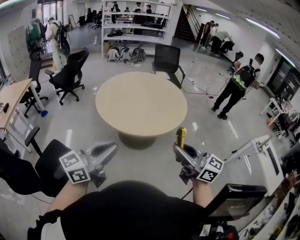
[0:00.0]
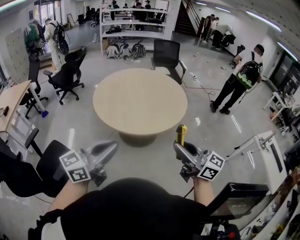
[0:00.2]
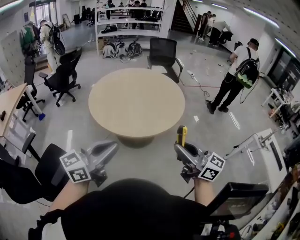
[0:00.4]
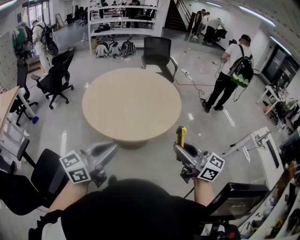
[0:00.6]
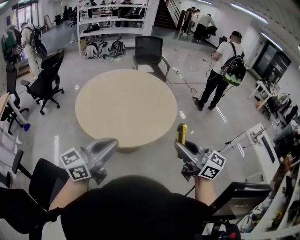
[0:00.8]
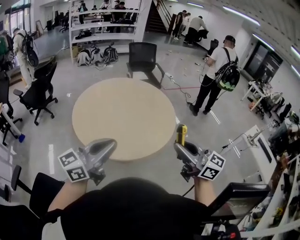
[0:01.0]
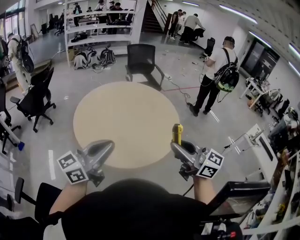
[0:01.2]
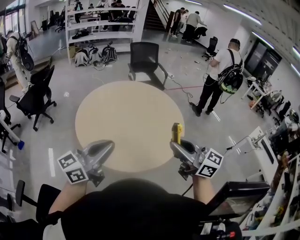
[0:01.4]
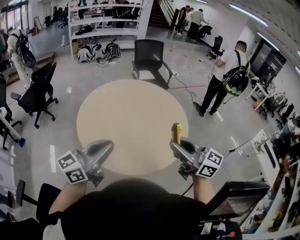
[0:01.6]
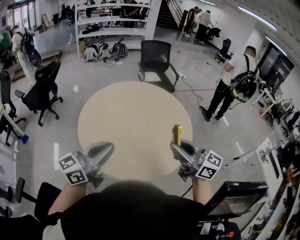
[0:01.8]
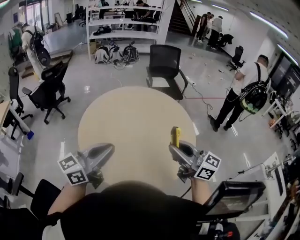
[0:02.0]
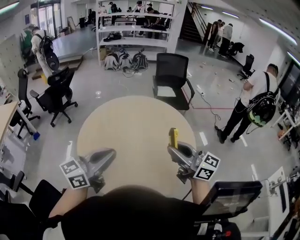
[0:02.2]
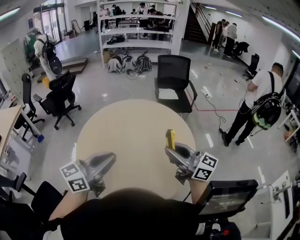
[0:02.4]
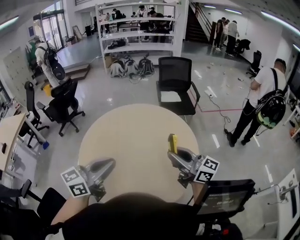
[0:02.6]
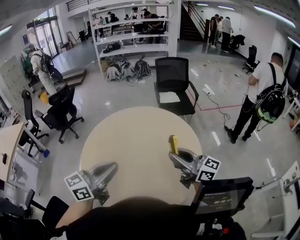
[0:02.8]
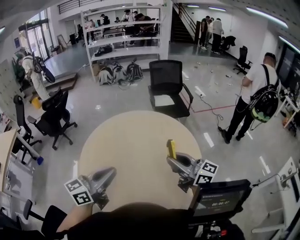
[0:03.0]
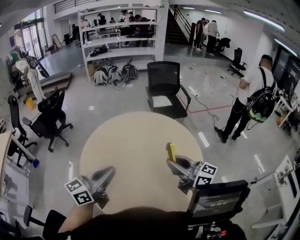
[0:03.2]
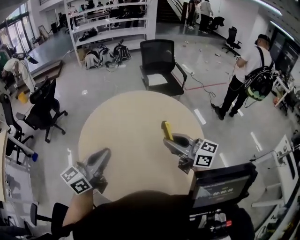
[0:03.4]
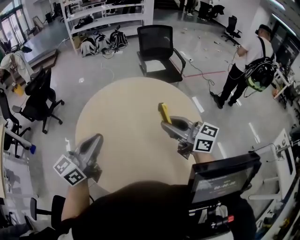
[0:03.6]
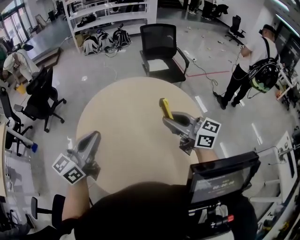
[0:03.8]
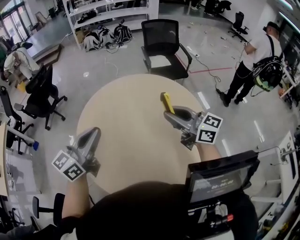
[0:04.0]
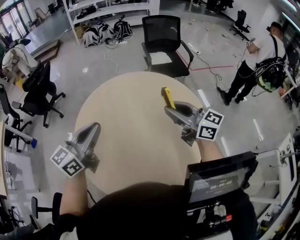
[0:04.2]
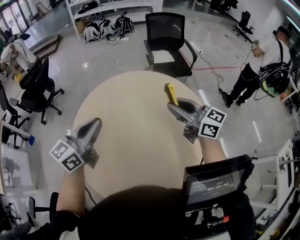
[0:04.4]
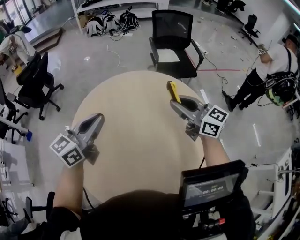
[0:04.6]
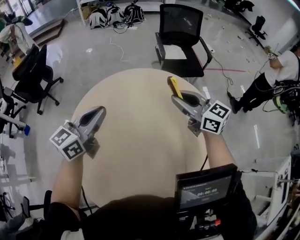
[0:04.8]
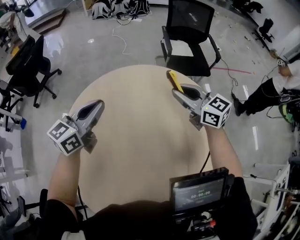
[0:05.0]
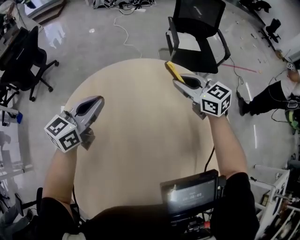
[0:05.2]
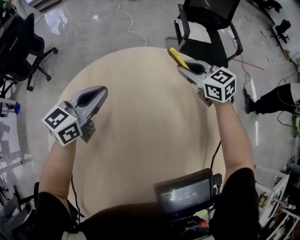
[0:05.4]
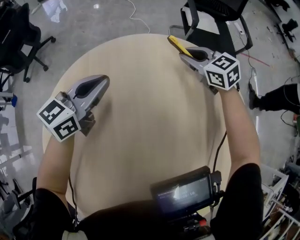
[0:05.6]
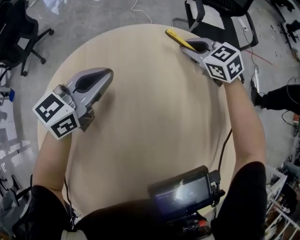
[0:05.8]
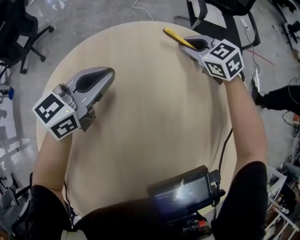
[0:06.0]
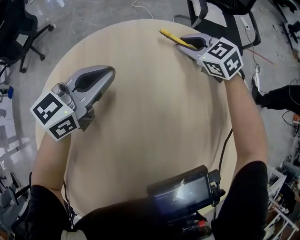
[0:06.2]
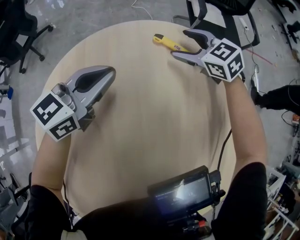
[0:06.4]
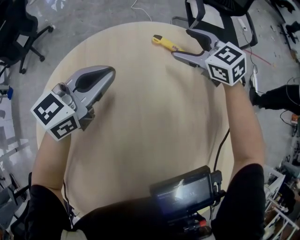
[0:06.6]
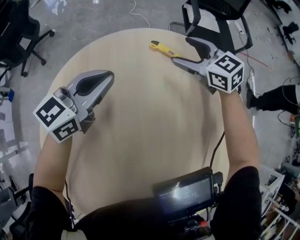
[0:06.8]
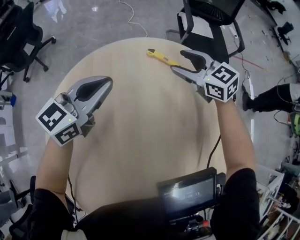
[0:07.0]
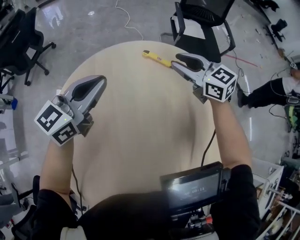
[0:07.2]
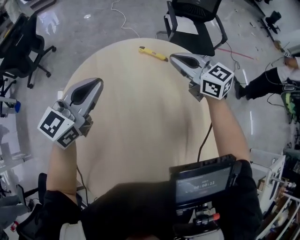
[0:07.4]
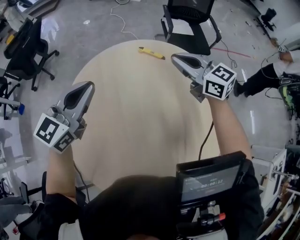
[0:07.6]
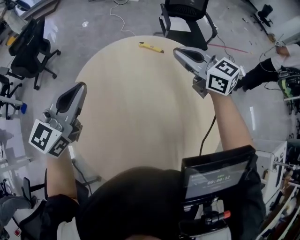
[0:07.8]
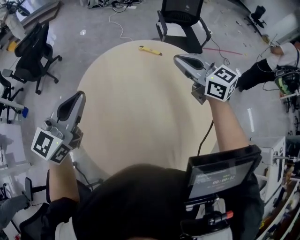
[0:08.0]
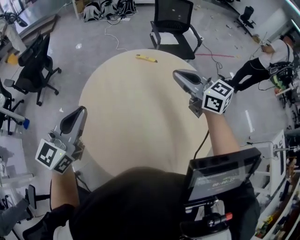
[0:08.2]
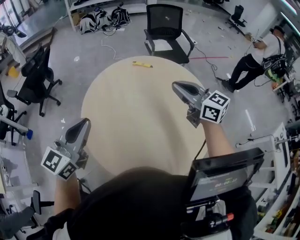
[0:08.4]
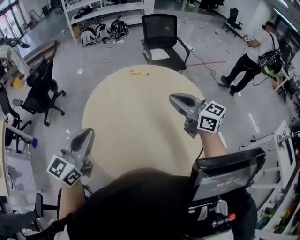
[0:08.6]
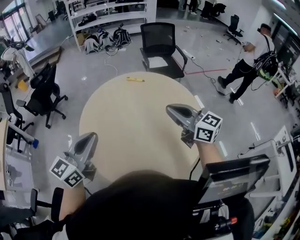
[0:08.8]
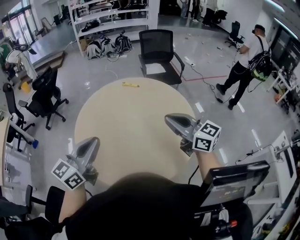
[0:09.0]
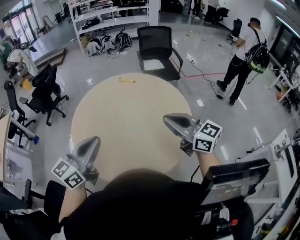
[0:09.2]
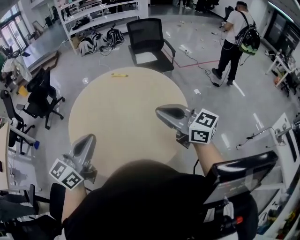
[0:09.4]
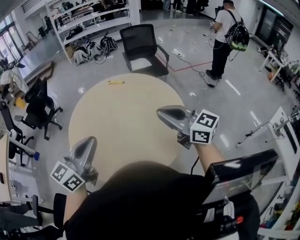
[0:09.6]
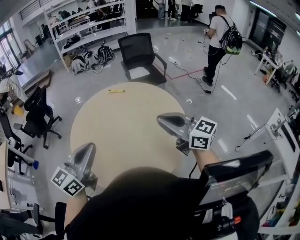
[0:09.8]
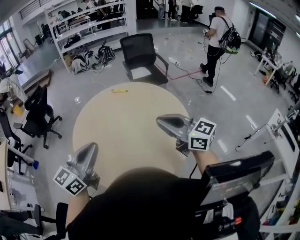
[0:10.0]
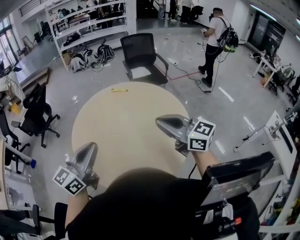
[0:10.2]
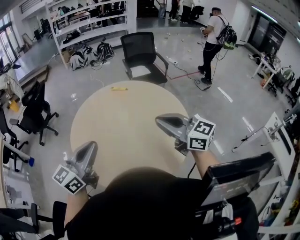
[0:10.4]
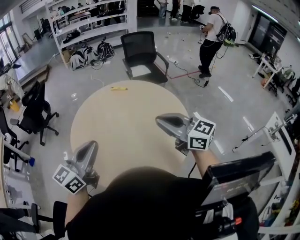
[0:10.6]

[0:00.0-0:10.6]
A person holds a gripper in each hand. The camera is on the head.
0:00.0 to 0:01.6: The two grippers go some 35 cm forward.
0:01.6 to 0:03.0: Both grippers travel together forward and to the right, approximately 25 cm.
0:03.0 to 0:04.6: The grippers both shift forward by about 25 cm.
0:04.6 to 0:06.0: The grippers both shift downward and forward by about 40 cm. The right gripper tilts its fingers about 40 degrees downward.
0:06.0 to 0:07.6: The two grippers go some 35 cm upward and backward. The right gripper swivels about 30 degrees, and opens and closes again.
0:07.6 to 0:09.0: Both grippers are carried backward, some 40 cm.
0:09.0 to 0:10.6: The left gripper moves roughly 5 cm to the right and comes back.

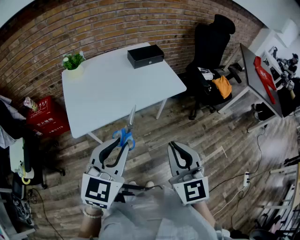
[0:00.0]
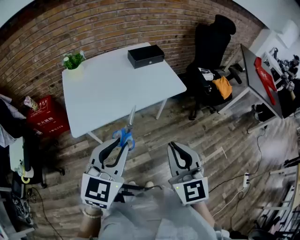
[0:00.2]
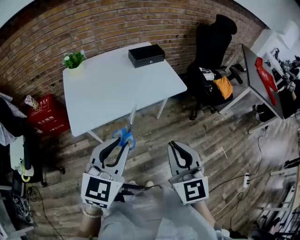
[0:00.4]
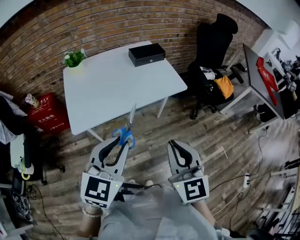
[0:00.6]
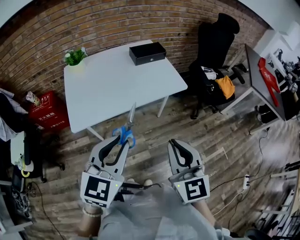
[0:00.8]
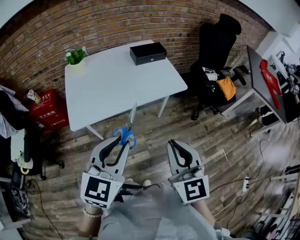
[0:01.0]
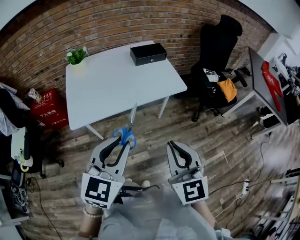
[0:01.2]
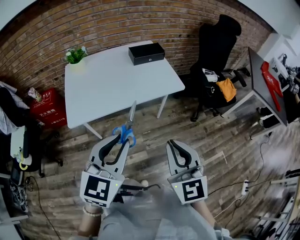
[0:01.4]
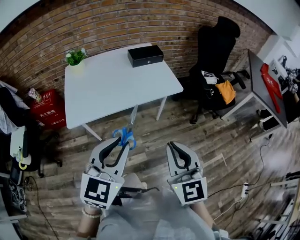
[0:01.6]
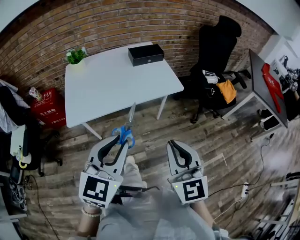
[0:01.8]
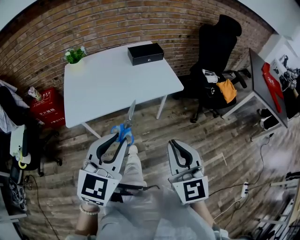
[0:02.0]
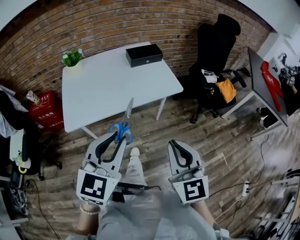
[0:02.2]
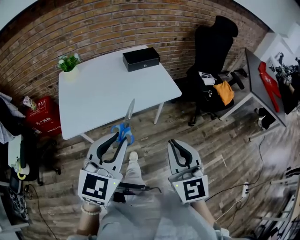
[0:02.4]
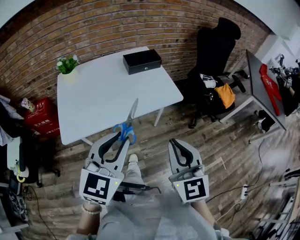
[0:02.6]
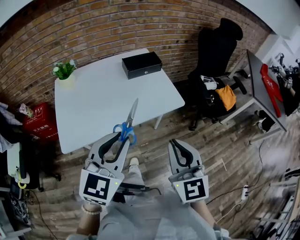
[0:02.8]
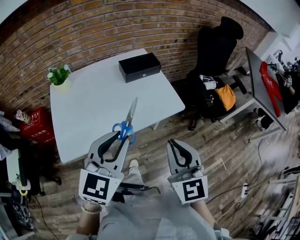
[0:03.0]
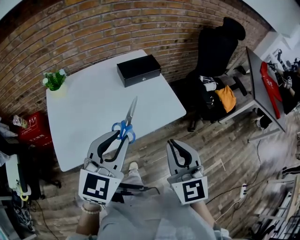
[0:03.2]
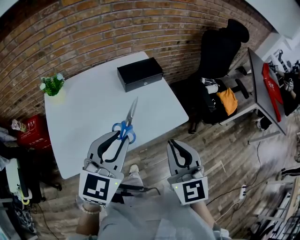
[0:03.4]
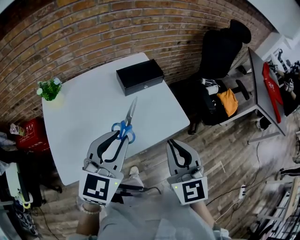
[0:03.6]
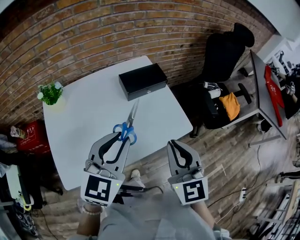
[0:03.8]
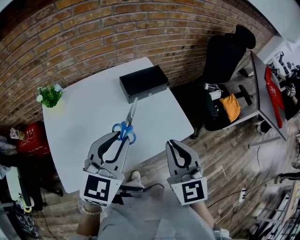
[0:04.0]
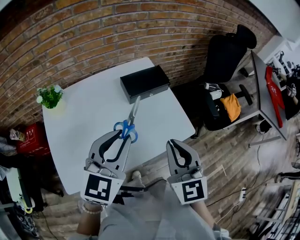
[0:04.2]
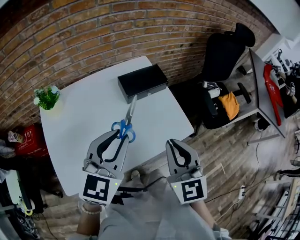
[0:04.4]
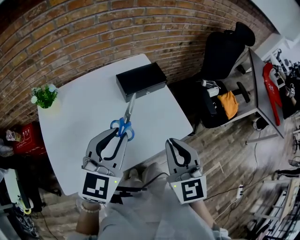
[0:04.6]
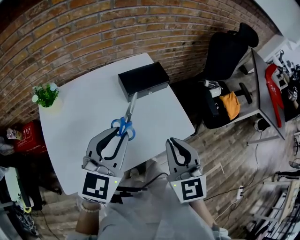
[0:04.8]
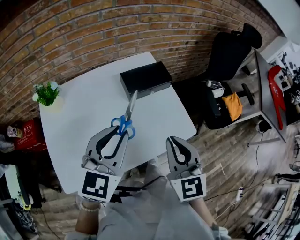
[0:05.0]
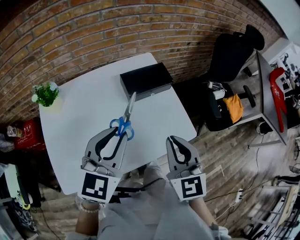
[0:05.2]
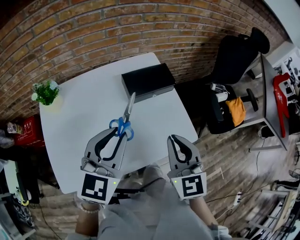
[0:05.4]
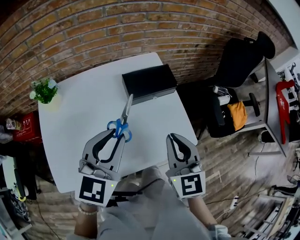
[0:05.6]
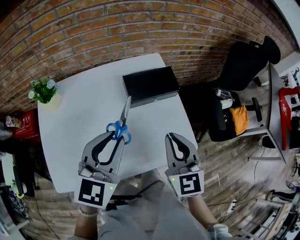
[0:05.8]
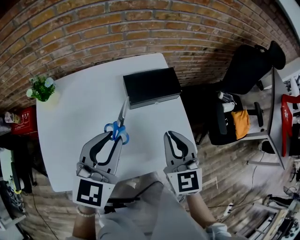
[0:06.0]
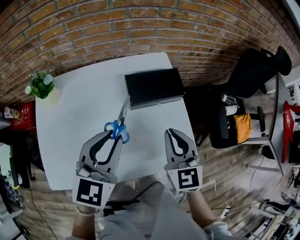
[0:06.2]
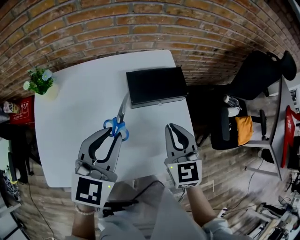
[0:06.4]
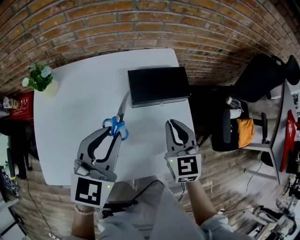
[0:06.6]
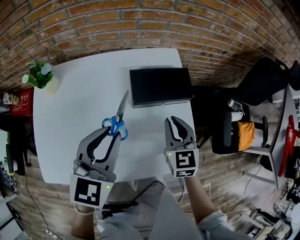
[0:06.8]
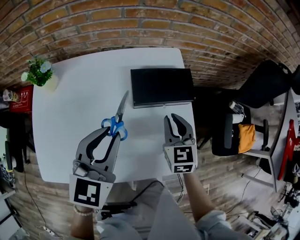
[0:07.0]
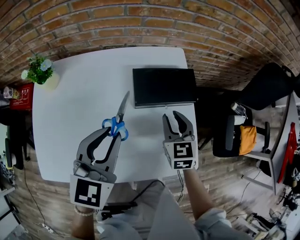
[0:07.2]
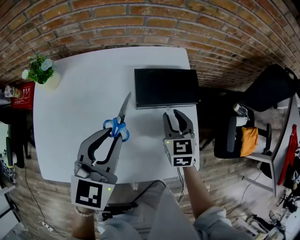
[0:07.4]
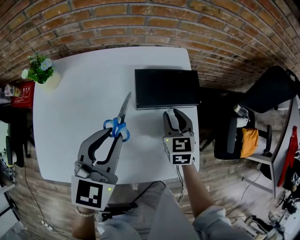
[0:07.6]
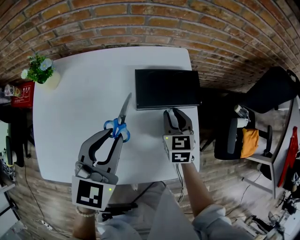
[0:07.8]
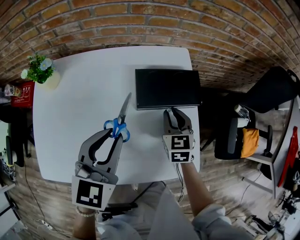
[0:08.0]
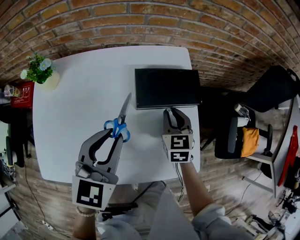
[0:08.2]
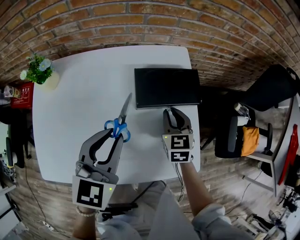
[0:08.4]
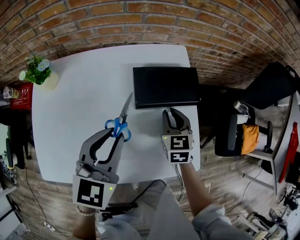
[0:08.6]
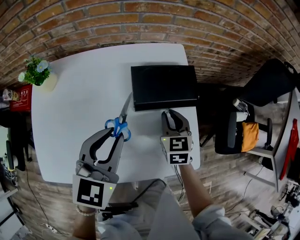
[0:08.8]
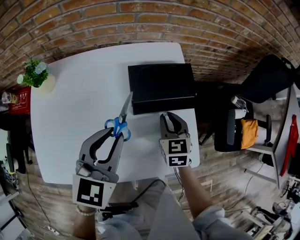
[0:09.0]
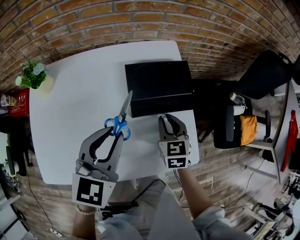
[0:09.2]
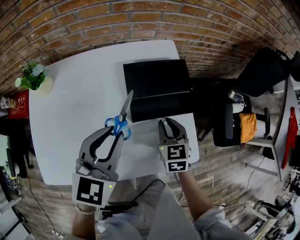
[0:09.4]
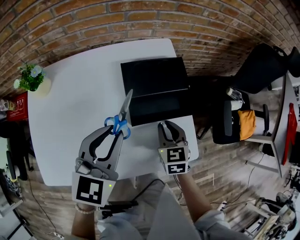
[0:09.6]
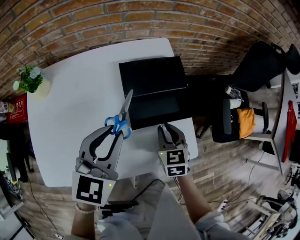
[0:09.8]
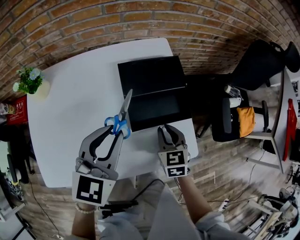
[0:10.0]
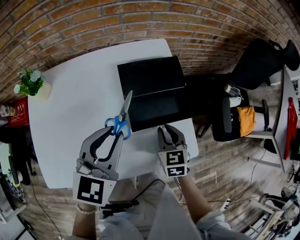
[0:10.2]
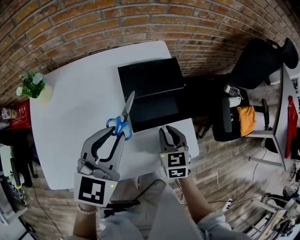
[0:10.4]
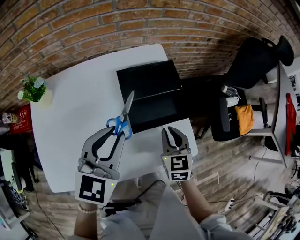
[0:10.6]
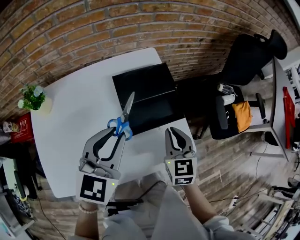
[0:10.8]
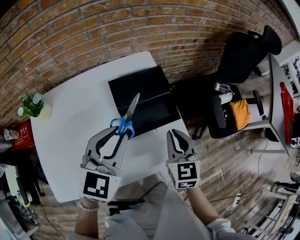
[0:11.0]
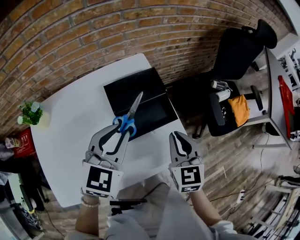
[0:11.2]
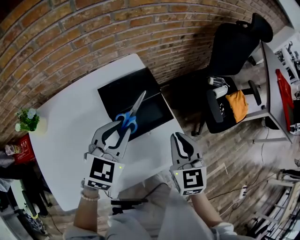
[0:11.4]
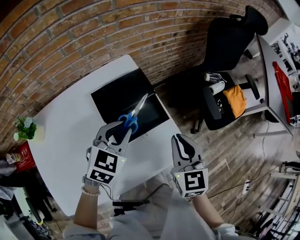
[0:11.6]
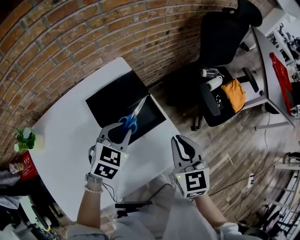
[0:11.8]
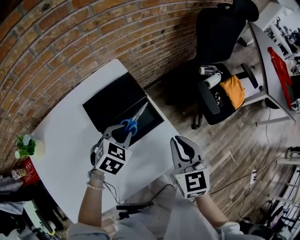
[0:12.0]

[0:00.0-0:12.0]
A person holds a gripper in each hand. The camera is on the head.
0:00.0 to 0:01.6: The grippers both shift to the right by about 10 cm.
0:01.6 to 0:03.0: Both grippers move forward, some 25 cm.
0:03.0 to 0:04.4: The grippers both shift forward by about 20 cm.
0:04.4 to 0:06.0: Both grippers move forward and downward, approximately 15 cm.
0:06.0 to 0:07.6: The right gripper is displaced downward and forward by some 25 cm; the left gripper goes roughly 10 cm downward and forward.
0:07.6 to 0:09.0: The grippers stay close to where they were, moving slightly.
0:09.0 to 0:10.4: The right gripper travels backward by about 10 cm.
0:10.4 to 0:12.0: The left gripper goes some 20 cm downward, to the right and forward, and tilts its fingers about 30 degrees downward, while the right gripper heads upward and to the right, covering some 15 cm, and changes its angle by about 20 degrees.

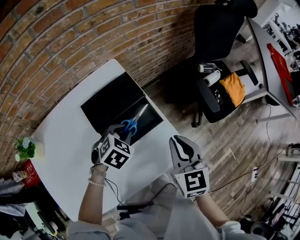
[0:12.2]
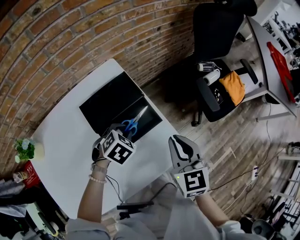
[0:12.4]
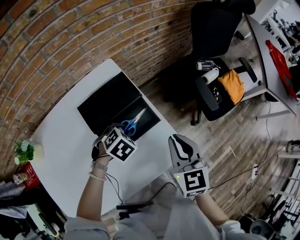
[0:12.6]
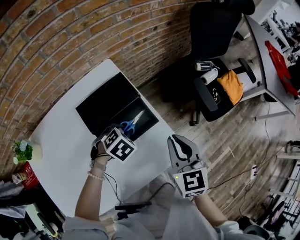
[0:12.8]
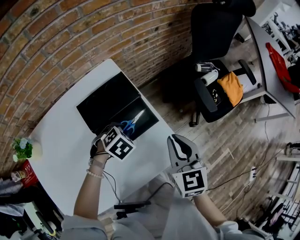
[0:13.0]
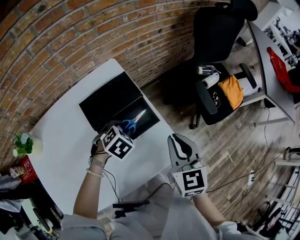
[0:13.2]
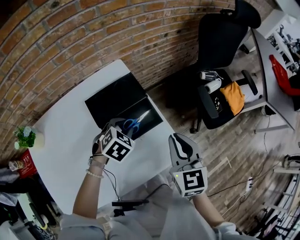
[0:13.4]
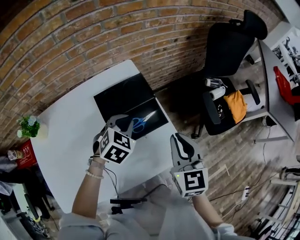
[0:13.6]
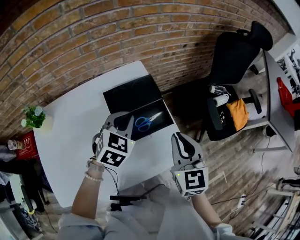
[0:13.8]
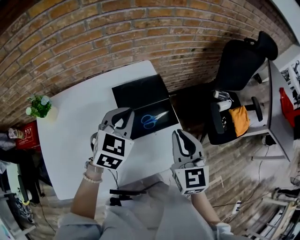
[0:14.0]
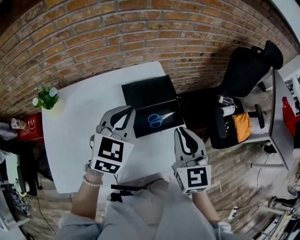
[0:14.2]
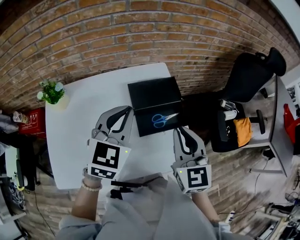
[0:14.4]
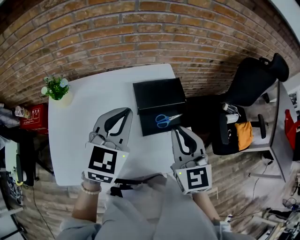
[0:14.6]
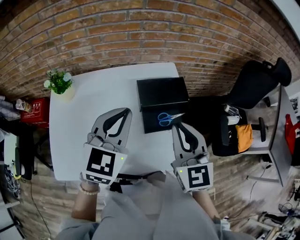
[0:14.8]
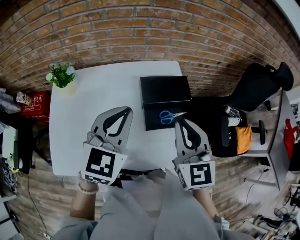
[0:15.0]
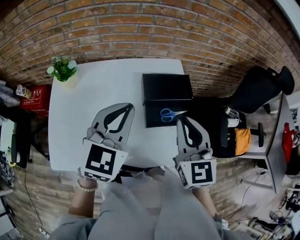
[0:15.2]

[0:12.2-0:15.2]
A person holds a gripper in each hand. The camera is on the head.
0:12.2 to 0:13.8: The left gripper goes roughly 10 cm upward, and turns by approximately 30 degrees; the right gripper travels upward by about 5 cm.
0:13.8 to 0:15.2: The left gripper heads upward, to the left and backward, covering about 20 cm, and changes its angle by about 30 degrees. The right gripper heads to the left and upward, covering about 15 cm, and swivels some 20 degrees.
